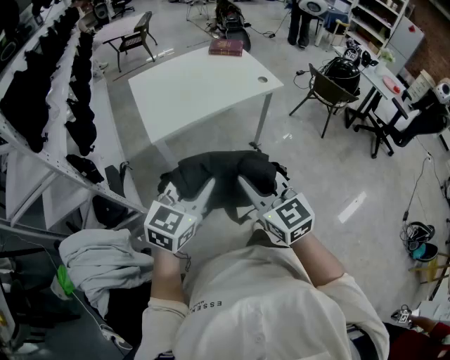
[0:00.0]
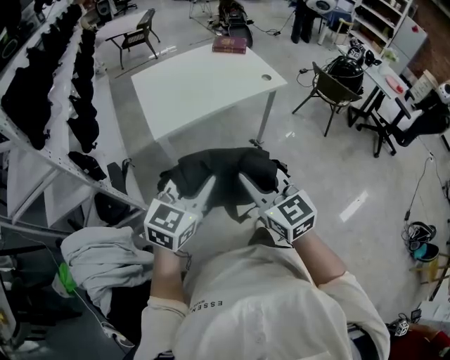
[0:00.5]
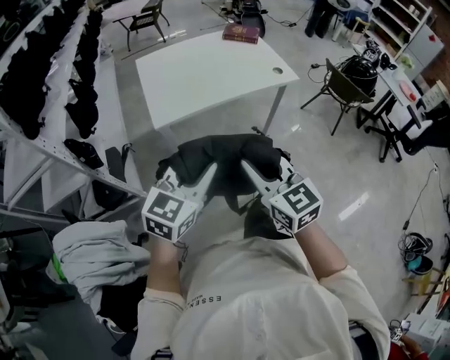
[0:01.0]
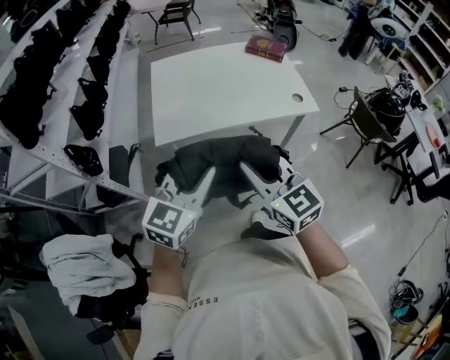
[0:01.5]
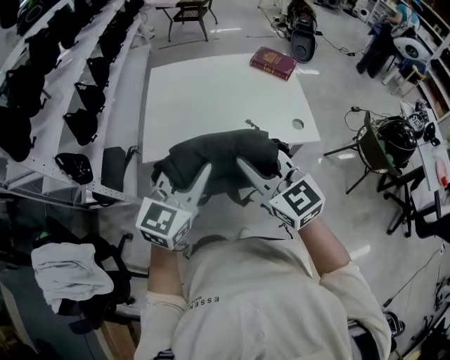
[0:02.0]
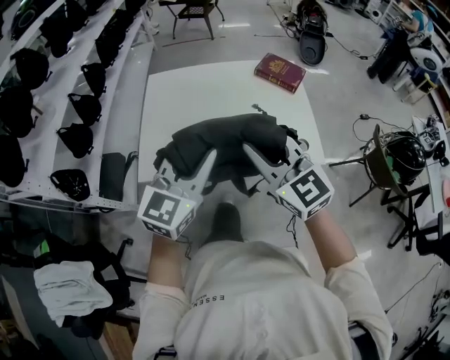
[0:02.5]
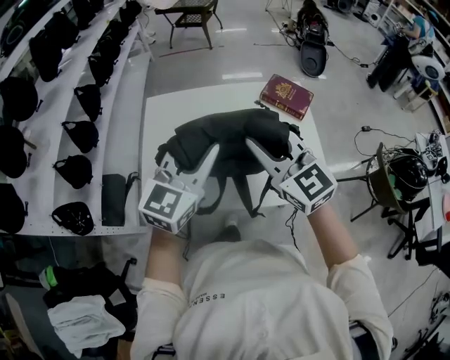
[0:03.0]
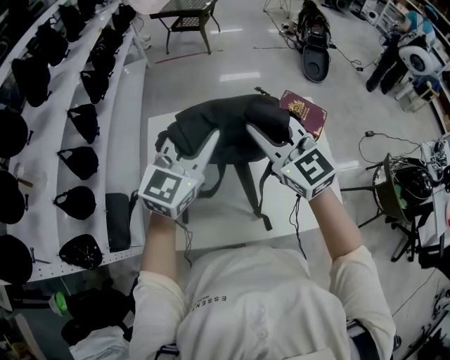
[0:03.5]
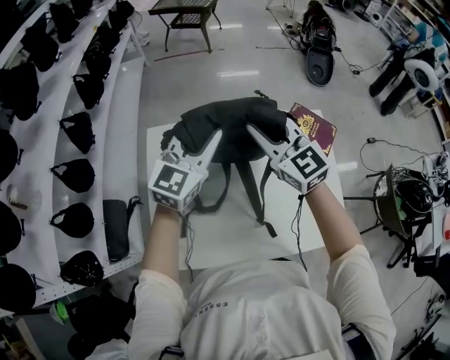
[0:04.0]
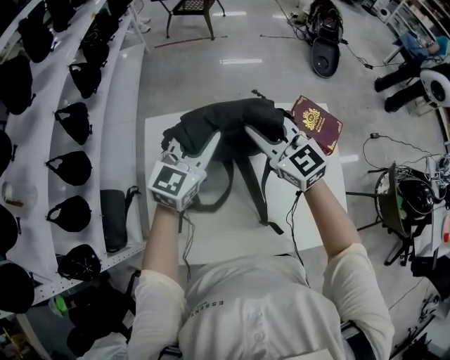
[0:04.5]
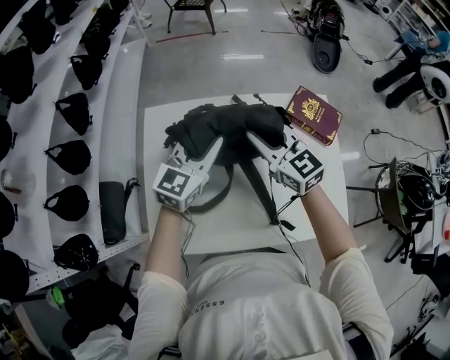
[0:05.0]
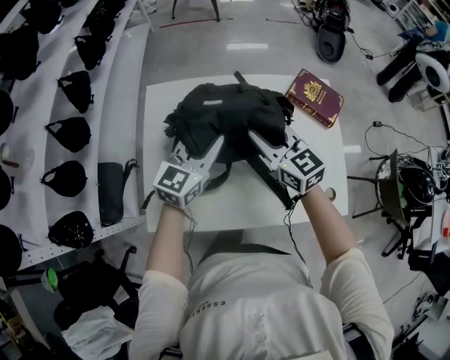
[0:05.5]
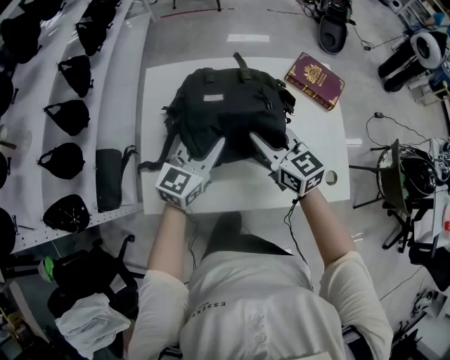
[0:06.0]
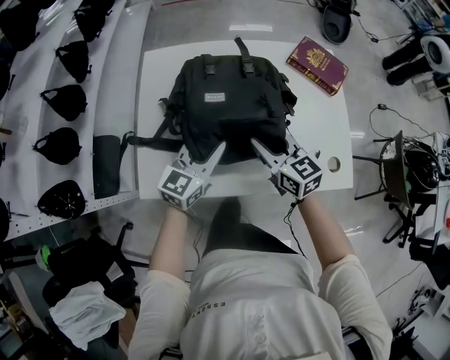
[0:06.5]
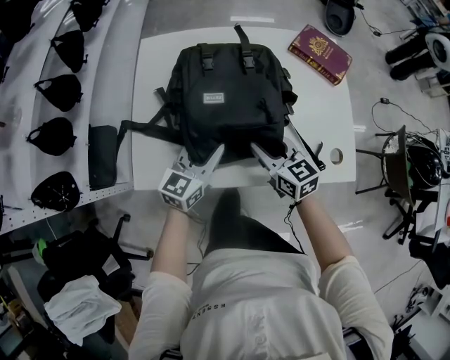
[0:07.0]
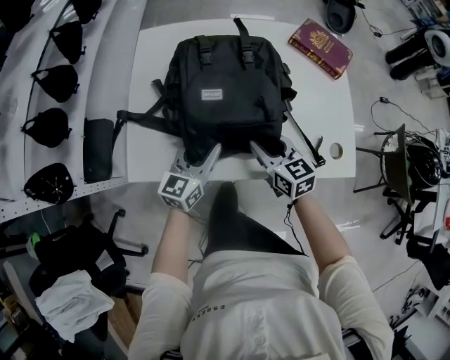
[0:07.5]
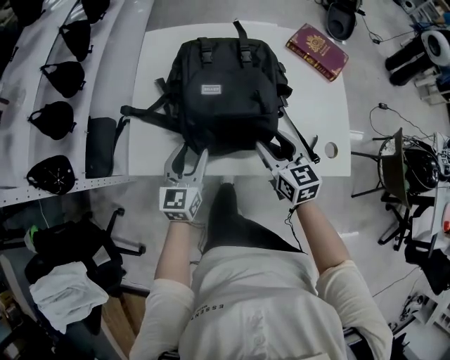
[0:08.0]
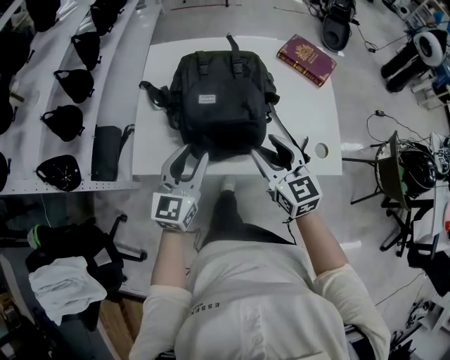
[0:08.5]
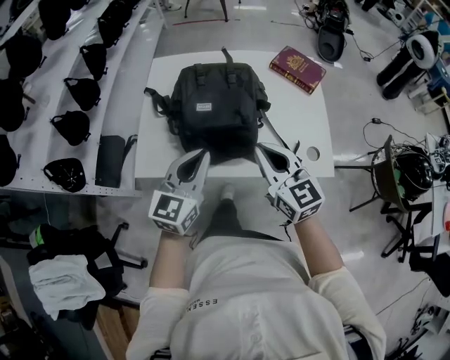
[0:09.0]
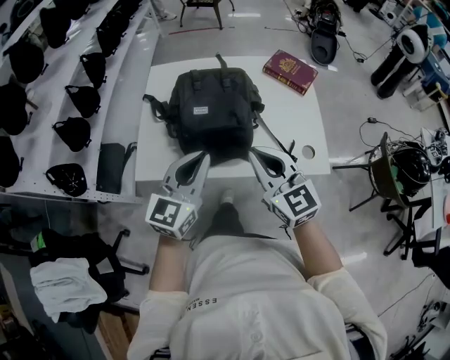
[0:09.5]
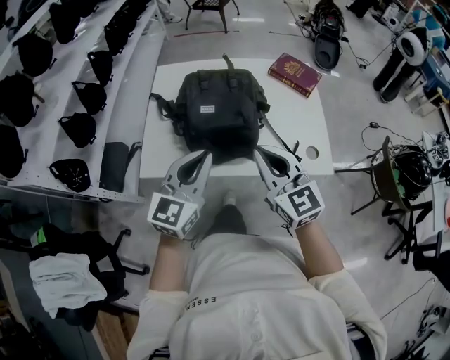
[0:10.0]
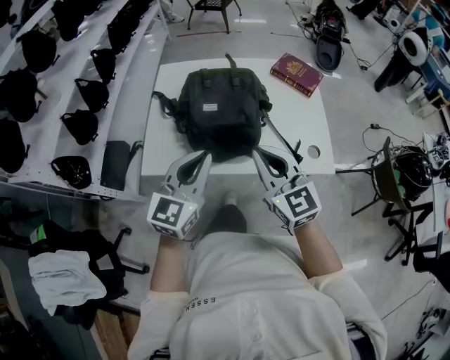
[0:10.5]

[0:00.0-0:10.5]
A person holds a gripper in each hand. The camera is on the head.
0.0 to 2.0 s: The right gripper ends up some 30 cm from where it was, and swivels some 30 degrees, while the left gripper moves about 30 cm, and turns by roughly 30 degrees.
2.0 to 4.0 s: Both grippers are carried forward, approximately 50 cm.
4.0 to 6.5 s: Both grippers move backward and downward, some 30 cm. The right gripper rotates approximately 30 degrees.
6.5 to 8.5 s: The grippers both shift backward by some 10 cm. The right gripper opens its fingers; the left gripper rotates approximately 20 degrees.
8.5 to 10.5 s: The two grippers go roughly 10 cm upward and backward. The right gripper closes; the left gripper closes.

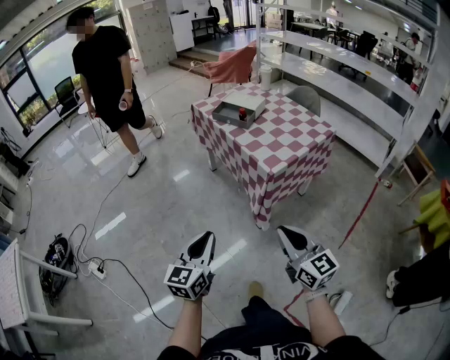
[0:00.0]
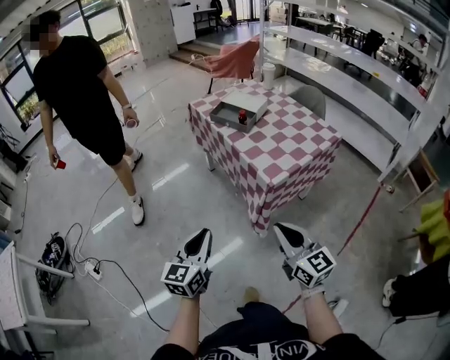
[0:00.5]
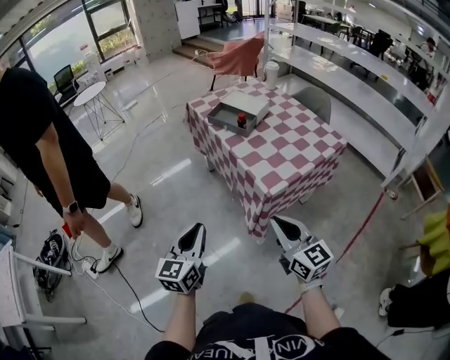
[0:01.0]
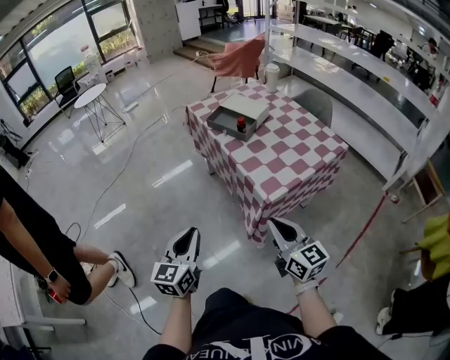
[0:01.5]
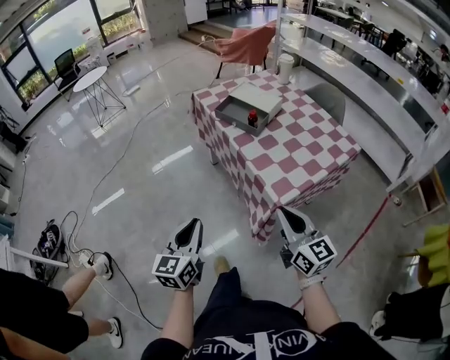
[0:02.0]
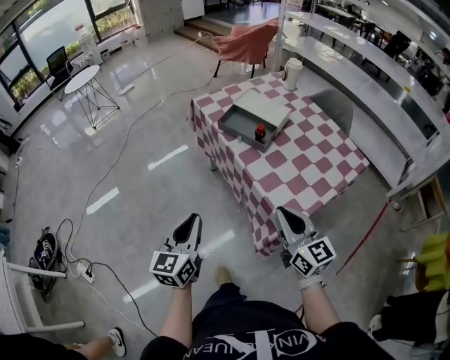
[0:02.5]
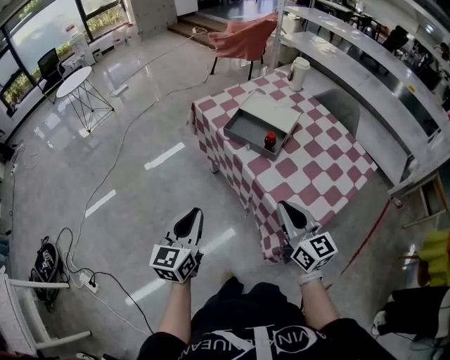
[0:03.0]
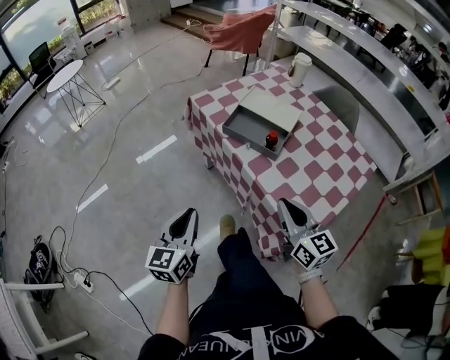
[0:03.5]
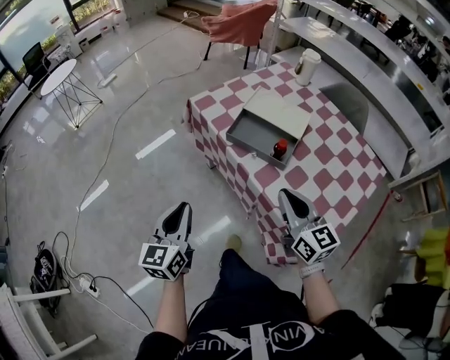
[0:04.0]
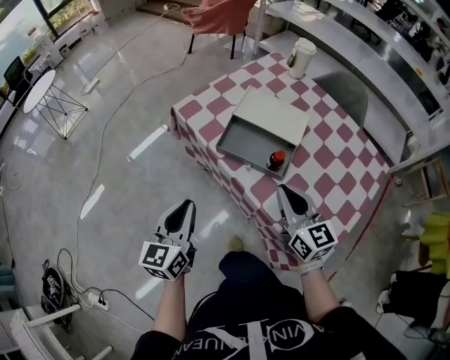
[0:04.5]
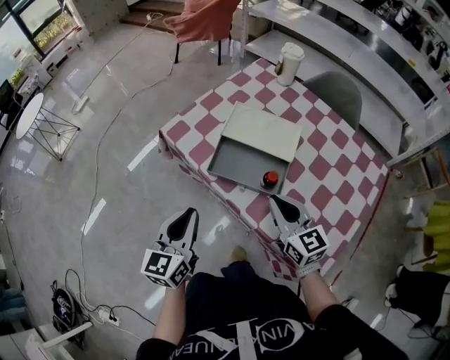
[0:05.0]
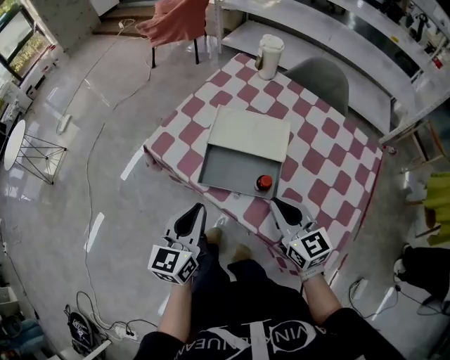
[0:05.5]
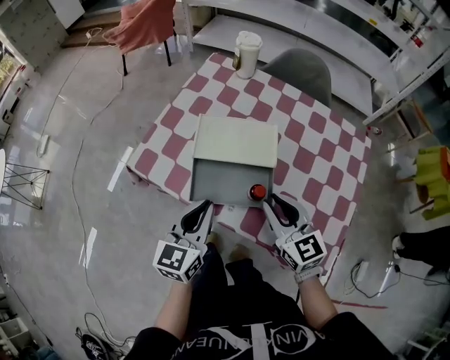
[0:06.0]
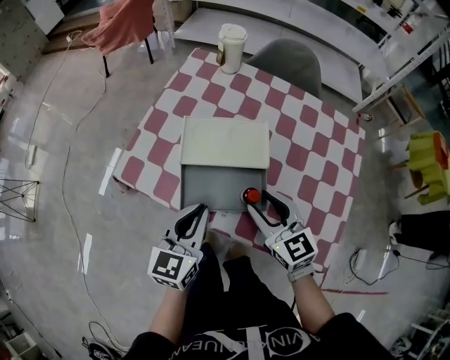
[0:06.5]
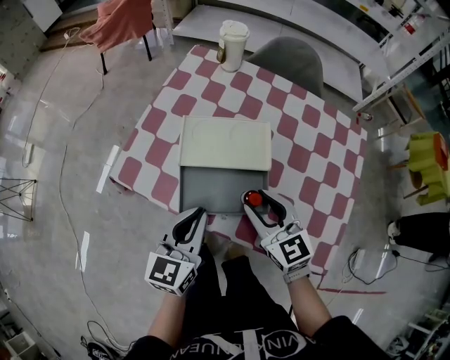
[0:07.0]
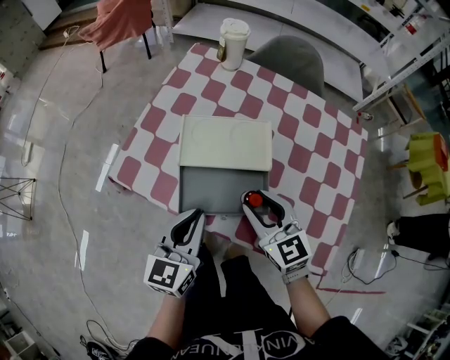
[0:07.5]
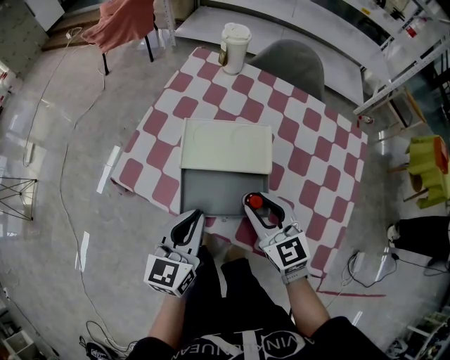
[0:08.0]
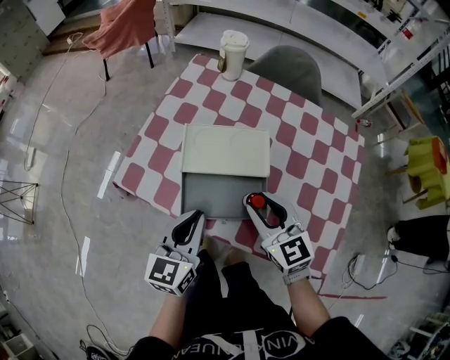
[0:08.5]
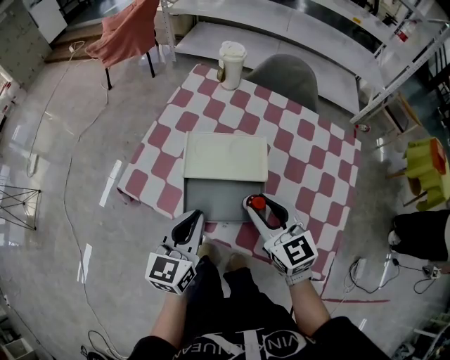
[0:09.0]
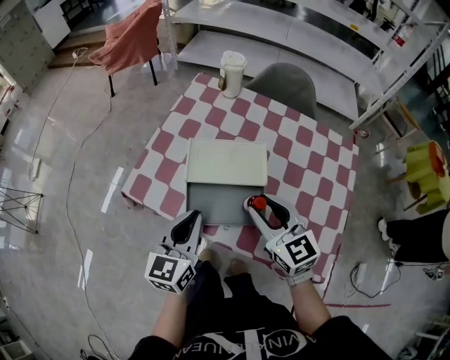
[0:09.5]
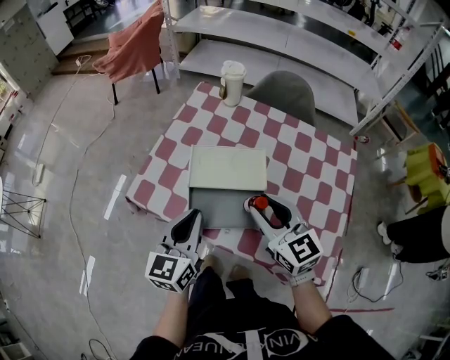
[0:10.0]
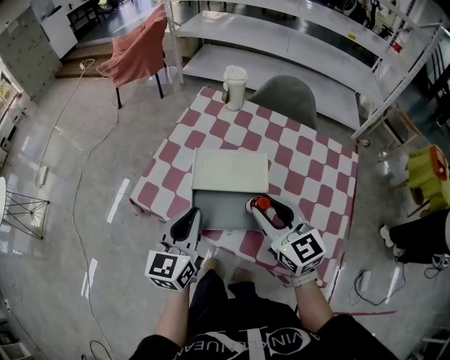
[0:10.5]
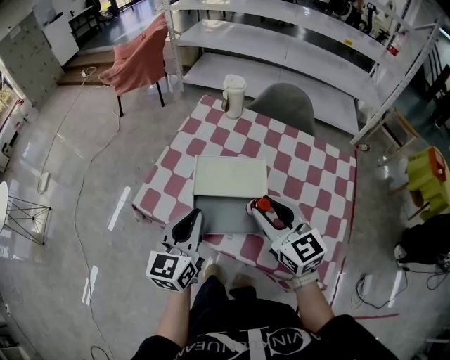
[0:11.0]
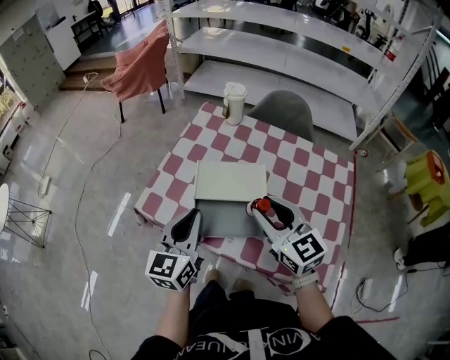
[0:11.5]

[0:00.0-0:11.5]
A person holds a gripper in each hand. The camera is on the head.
0.0 to 2.0 s: The two grippers go some 25 cm forward.
2.0 to 4.0 s: Both grippers travel together forward, approximately 30 cm.
4.0 to 6.0 s: The left gripper moves roughly 30 cm, and rotates some 40 degrees, while the right gripper moves approximately 15 cm, and changes its angle by roughly 20 degrees.
6.0 to 7.5 s: The right gripper opens up.
7.5 to 9.5 s: The right gripper shifts some 5 cm upward.
9.5 to 11.5 s: The two grippers go about 5 cm upward.

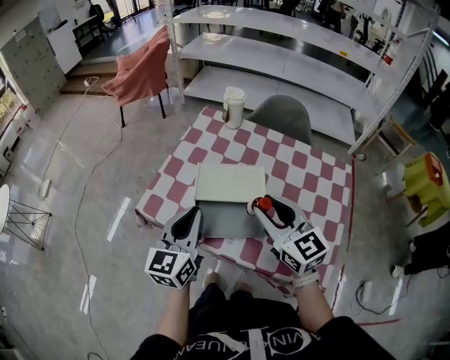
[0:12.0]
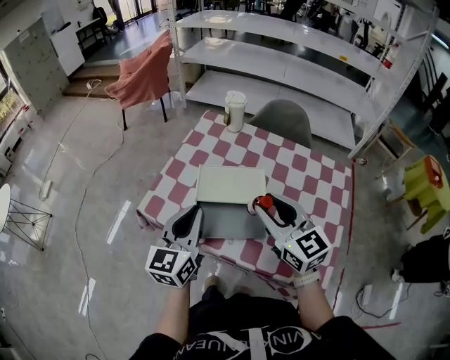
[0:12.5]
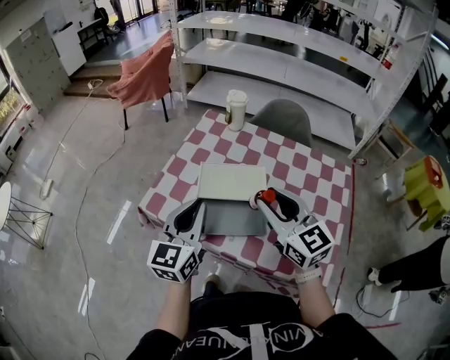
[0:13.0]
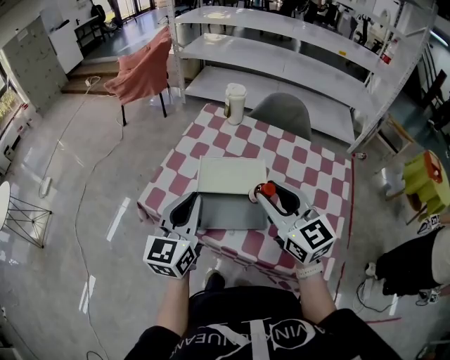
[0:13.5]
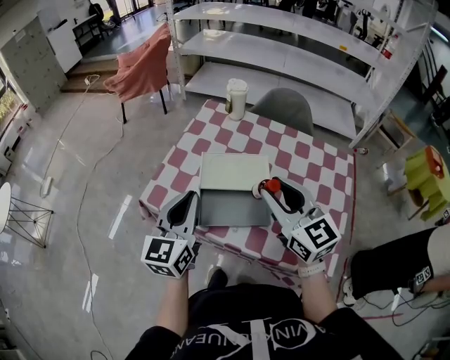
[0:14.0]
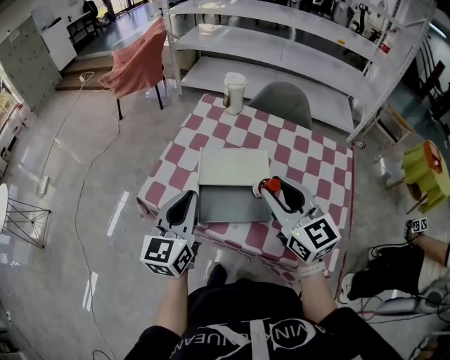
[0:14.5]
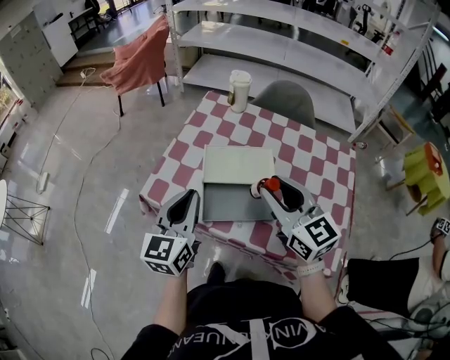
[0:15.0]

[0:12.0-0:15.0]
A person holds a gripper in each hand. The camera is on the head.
12.0 to 15.0 s: The grippers stay close to where they were, moving slightly.

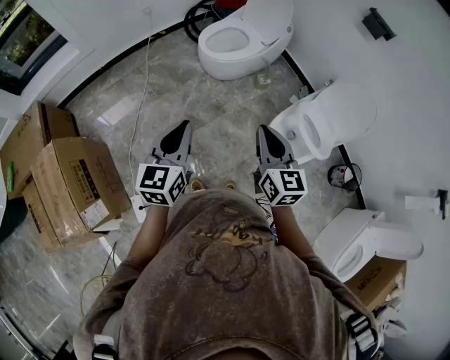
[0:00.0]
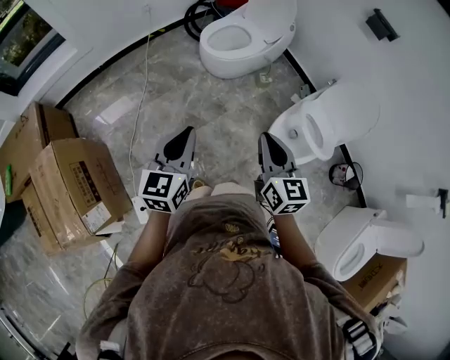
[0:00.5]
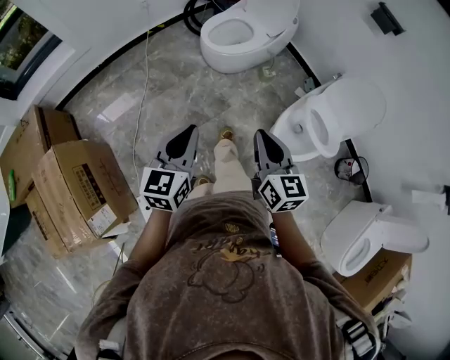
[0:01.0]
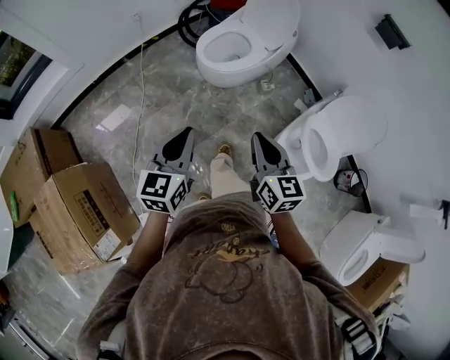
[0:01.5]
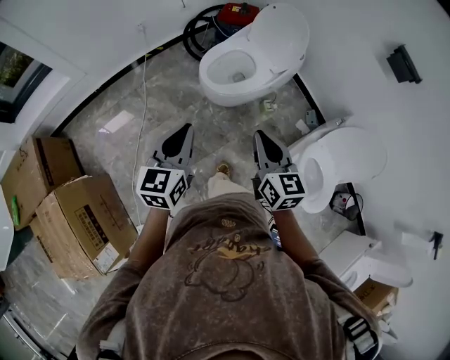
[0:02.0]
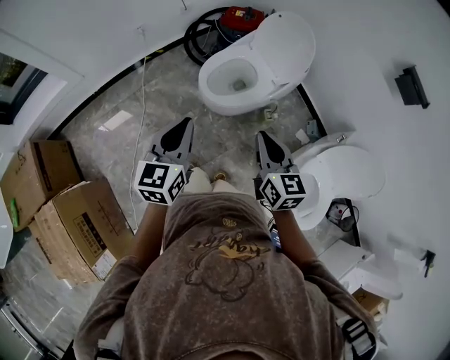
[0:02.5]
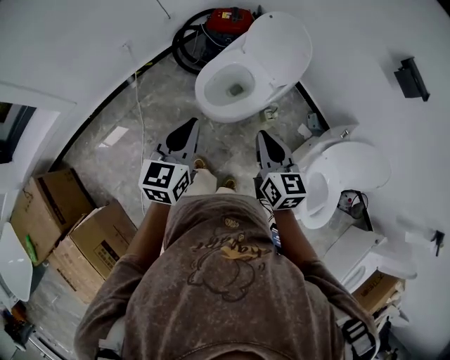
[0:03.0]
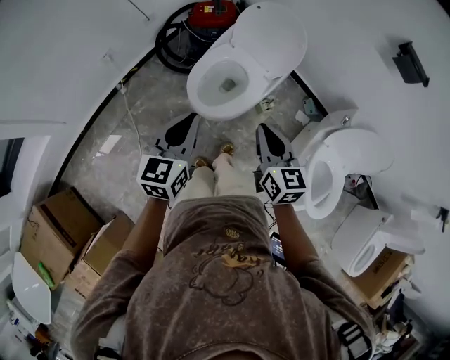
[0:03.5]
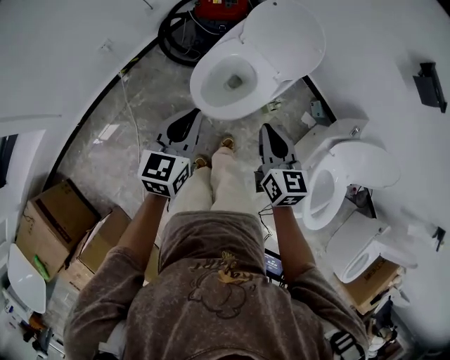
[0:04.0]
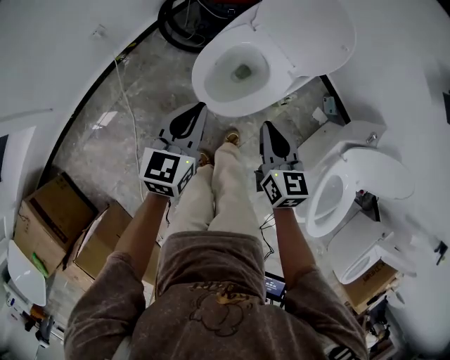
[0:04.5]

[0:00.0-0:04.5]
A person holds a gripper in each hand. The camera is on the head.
0.0 to 2.0 s: The grippers both shift forward by some 25 cm.
2.0 to 4.5 s: Both grippers travel together forward and downward, some 35 cm.
